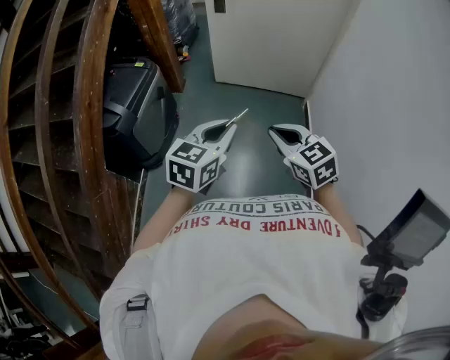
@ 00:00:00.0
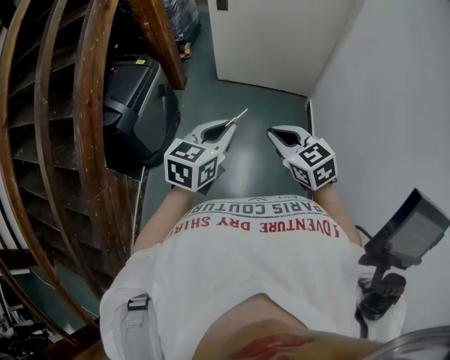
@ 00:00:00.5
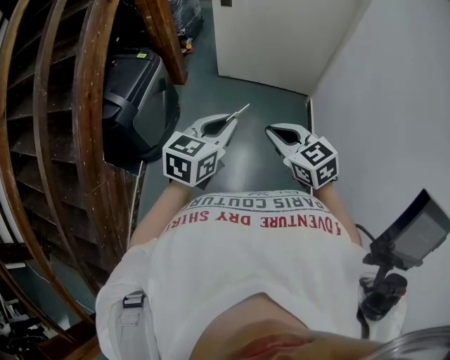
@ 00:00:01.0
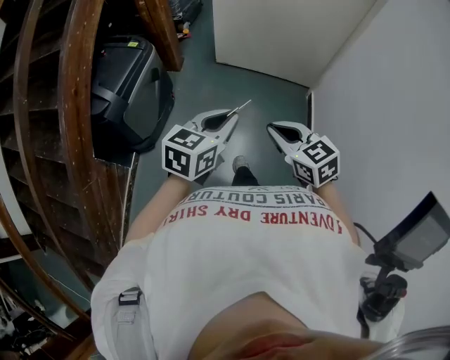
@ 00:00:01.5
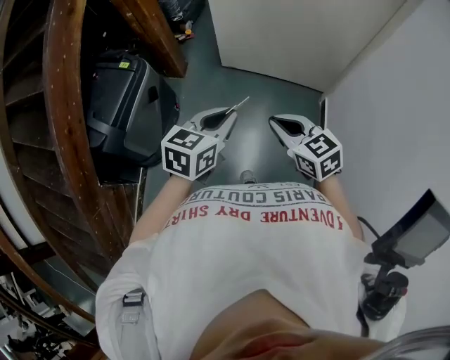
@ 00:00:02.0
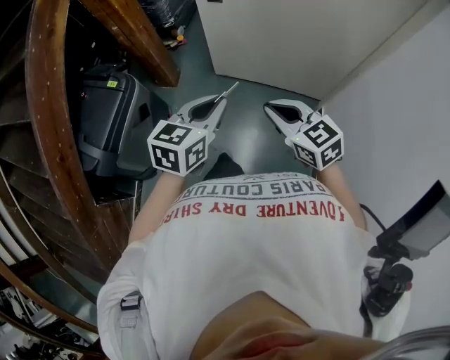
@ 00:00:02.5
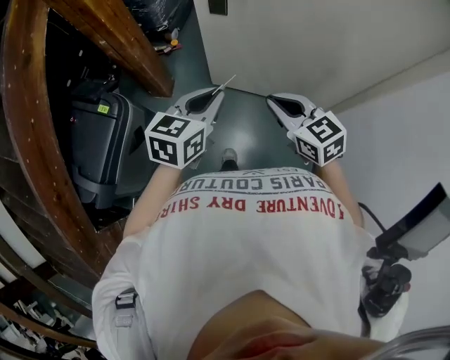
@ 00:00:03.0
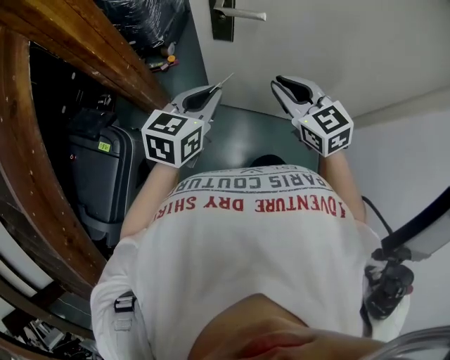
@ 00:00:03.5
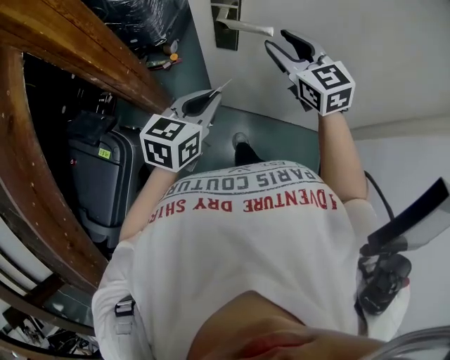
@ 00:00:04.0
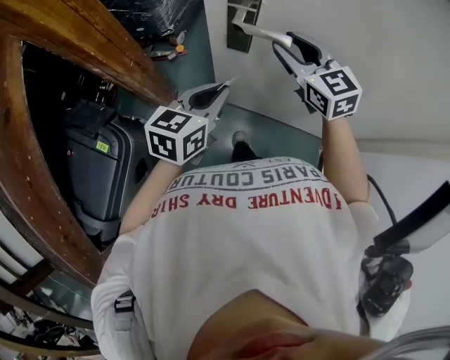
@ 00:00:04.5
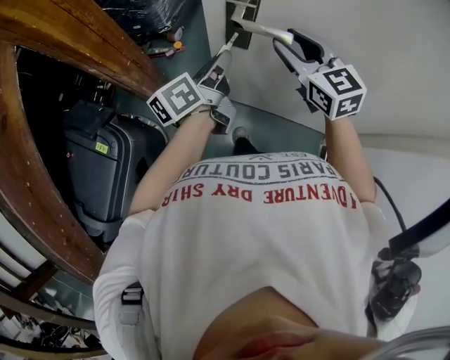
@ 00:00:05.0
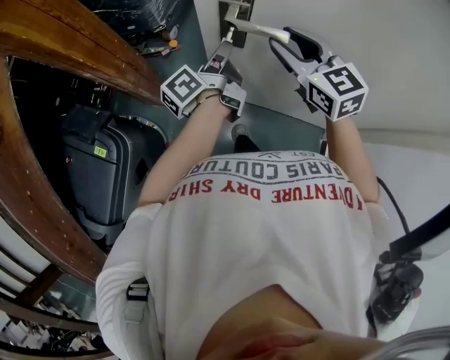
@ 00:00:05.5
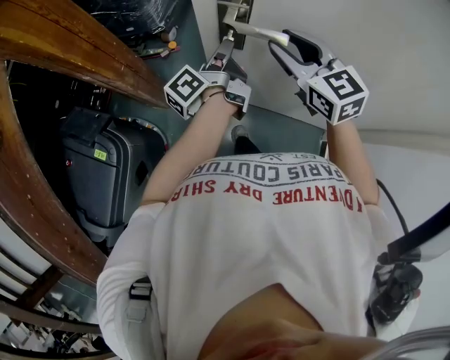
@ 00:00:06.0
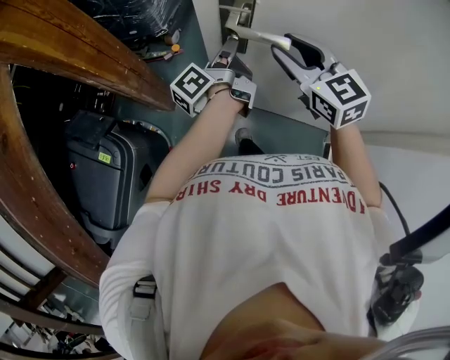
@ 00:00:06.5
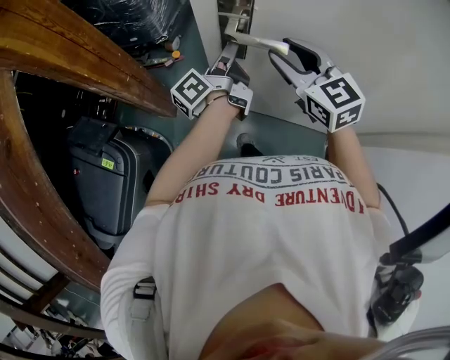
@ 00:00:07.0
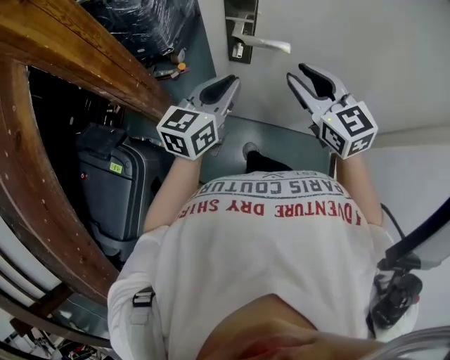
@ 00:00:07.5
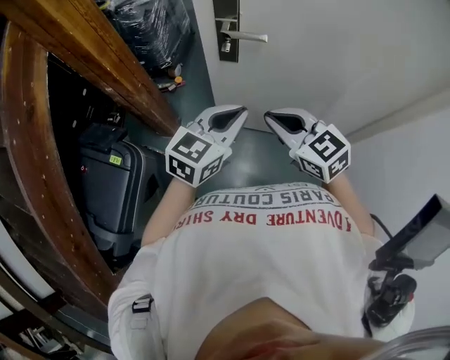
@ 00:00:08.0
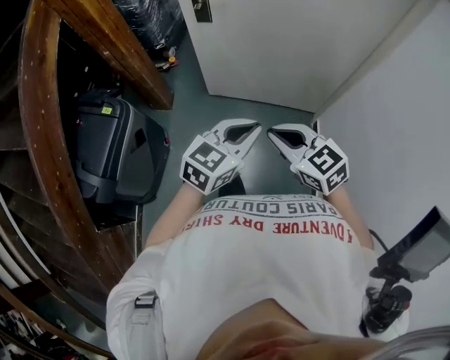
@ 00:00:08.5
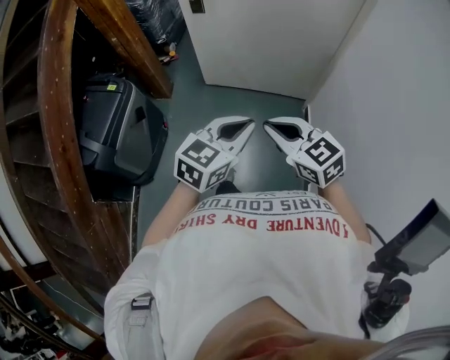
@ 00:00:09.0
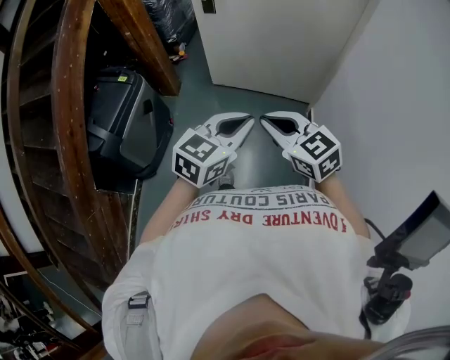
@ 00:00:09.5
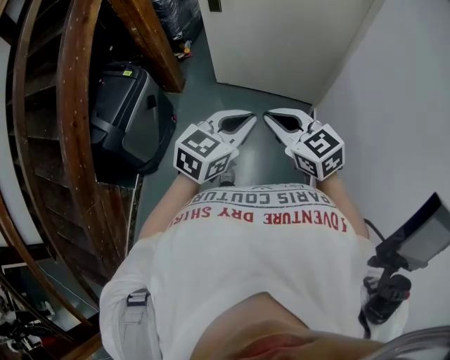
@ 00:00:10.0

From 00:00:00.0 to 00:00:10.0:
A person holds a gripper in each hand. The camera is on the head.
From 00:00:00.0 to 00:00:02.0: Both grippers move forward, approximately 30 cm.
From 00:00:02.0 to 00:00:04.0: The two grippers travel together, forward, approximately 60 cm. The right gripper changes its angle by about 20 degrees, and opens.
From 00:00:04.0 to 00:00:06.0: The left gripper heads forward, covering approximately 15 cm, and rolls counterclockwise, seen from behind, by about 70 degrees.
From 00:00:06.0 to 00:00:08.0: Both grippers travel together backward, some 25 cm. The right gripper closes up. Meanwhile the left gripper rolls clockwise, seen from behind, by roughly 80 degrees.
From 00:00:08.0 to 00:00:10.0: The two grippers travel together, backward, about 60 cm.

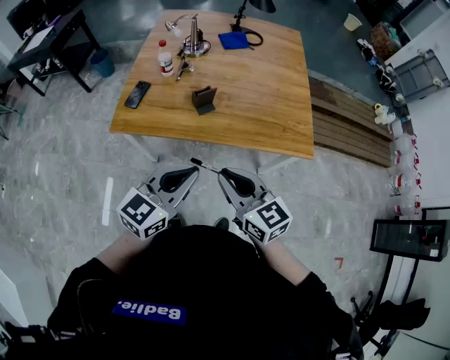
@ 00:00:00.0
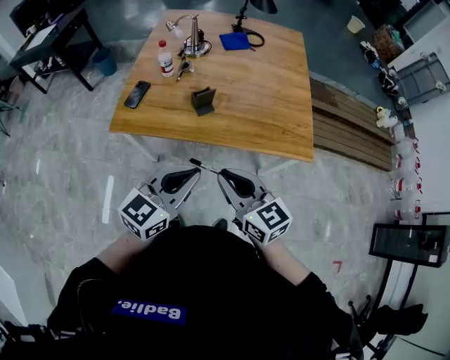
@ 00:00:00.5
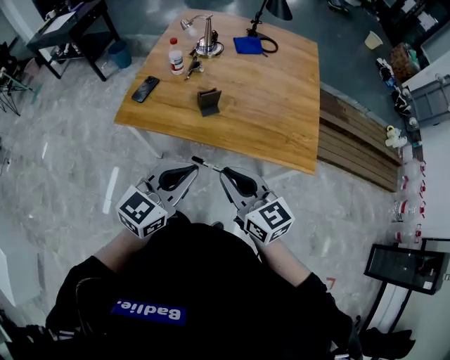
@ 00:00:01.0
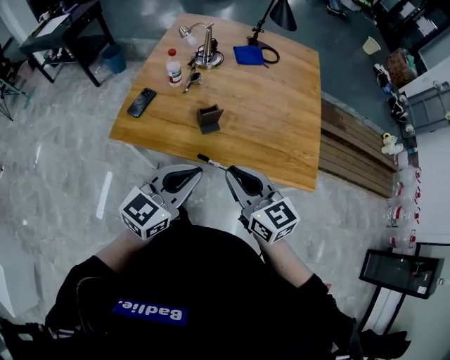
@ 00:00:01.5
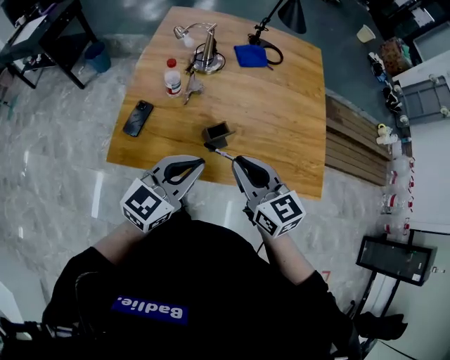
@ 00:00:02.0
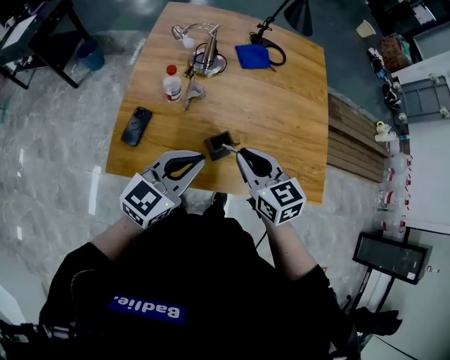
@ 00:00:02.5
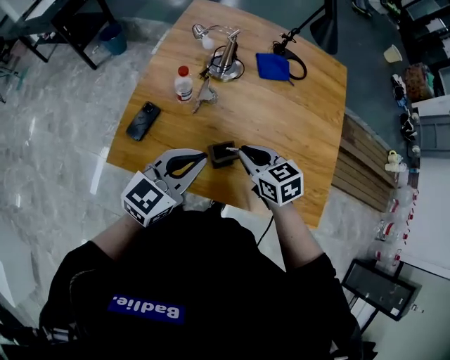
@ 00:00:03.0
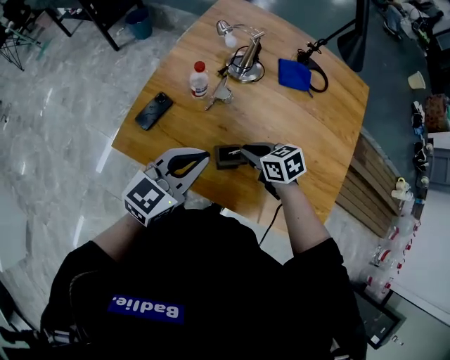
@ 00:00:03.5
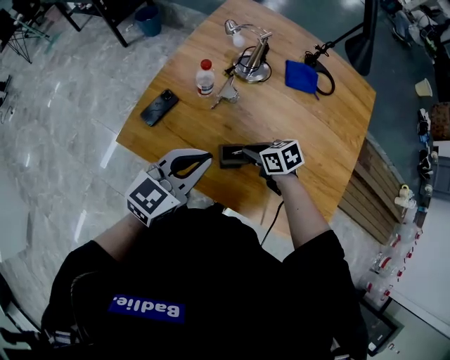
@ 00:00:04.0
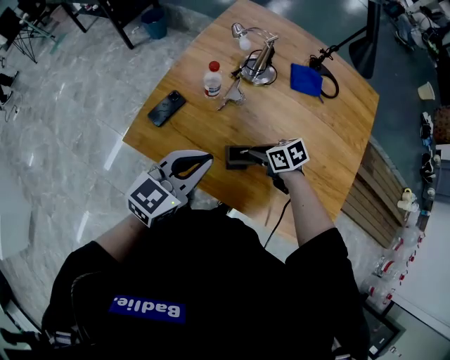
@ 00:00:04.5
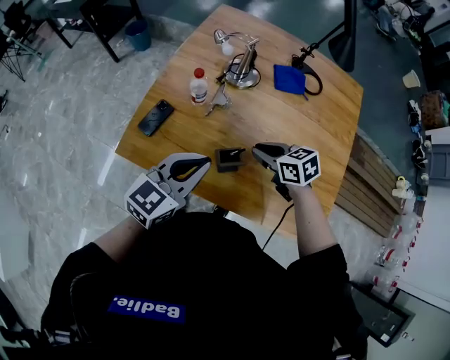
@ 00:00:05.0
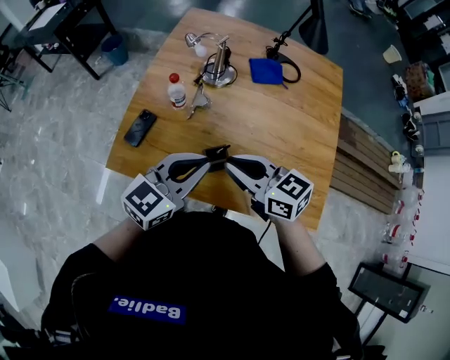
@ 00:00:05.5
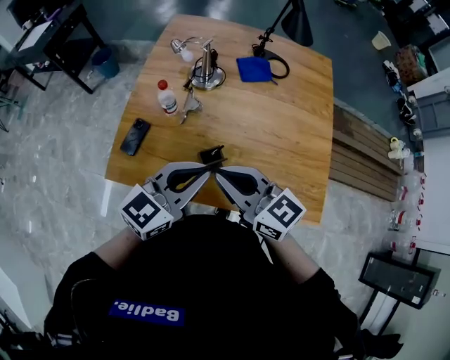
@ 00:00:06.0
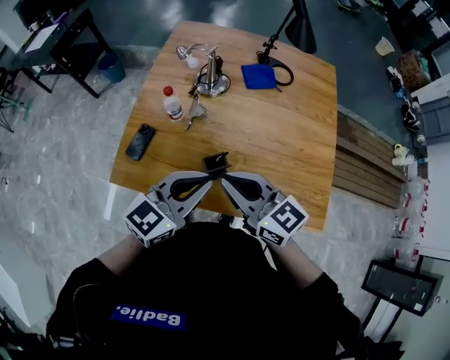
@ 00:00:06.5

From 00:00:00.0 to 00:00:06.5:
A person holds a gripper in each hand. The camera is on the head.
From 00:00:00.0 to 00:00:02.0: Both grippers move forward, approximately 20 cm.
From 00:00:02.0 to 00:00:04.5: The right gripper moves downward, roughly 20 cm, and points its fingers about 30 degrees further downward. The left gripper ends up roughly 10 cm from where it was.
From 00:00:04.5 to 00:00:06.5: The left gripper shifts by some 10 cm, while the right gripper travels upward by roughly 25 cm, and tilts its fingers roughly 40 degrees upward.

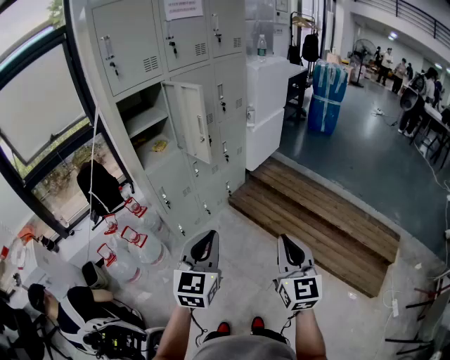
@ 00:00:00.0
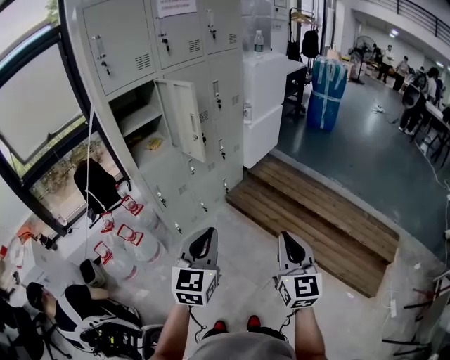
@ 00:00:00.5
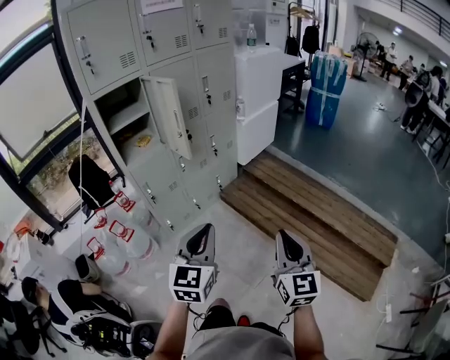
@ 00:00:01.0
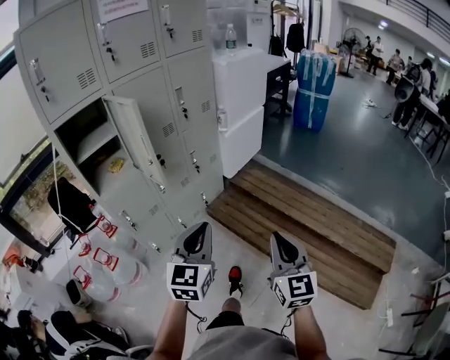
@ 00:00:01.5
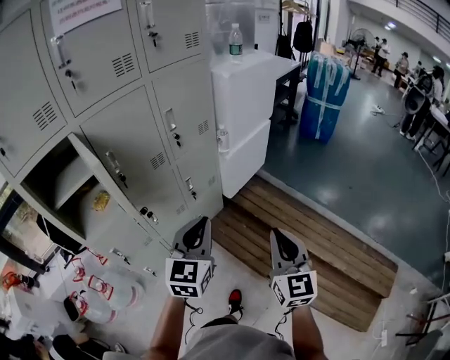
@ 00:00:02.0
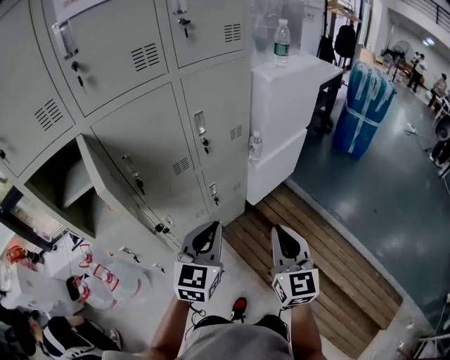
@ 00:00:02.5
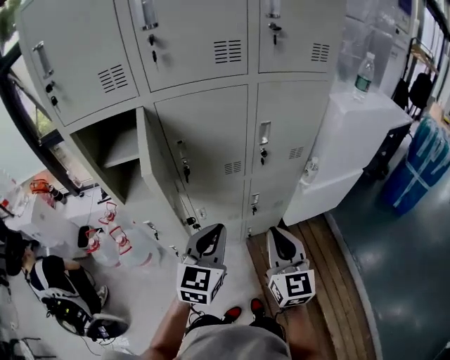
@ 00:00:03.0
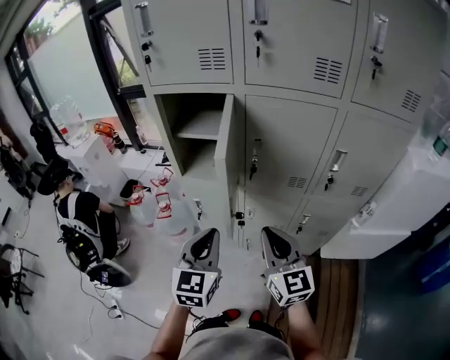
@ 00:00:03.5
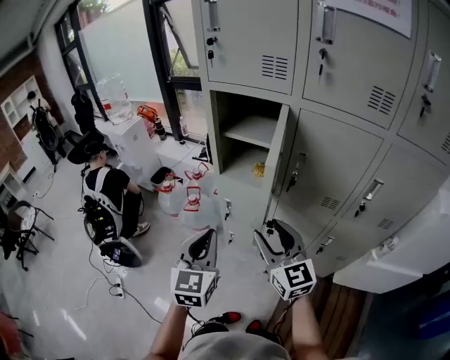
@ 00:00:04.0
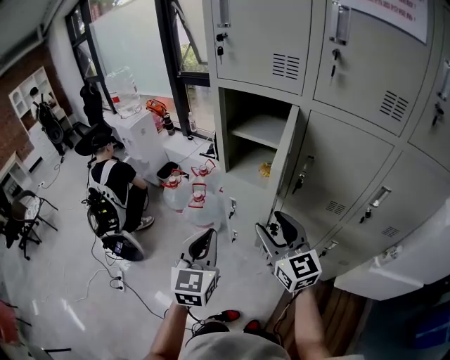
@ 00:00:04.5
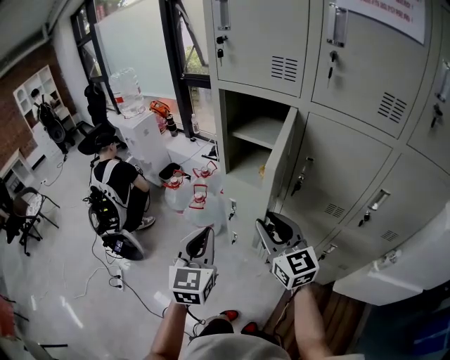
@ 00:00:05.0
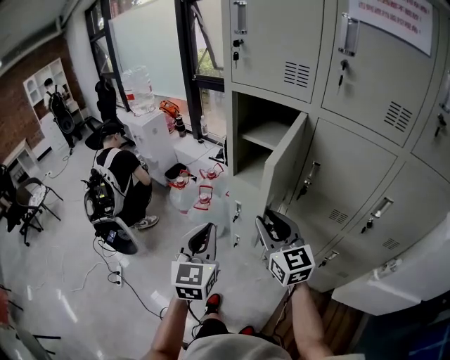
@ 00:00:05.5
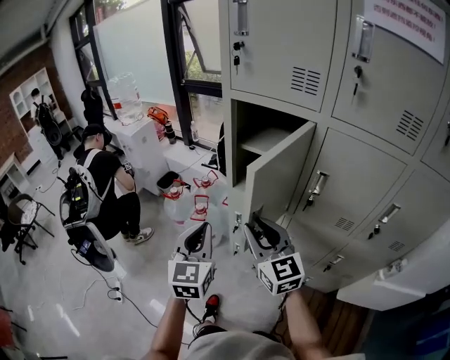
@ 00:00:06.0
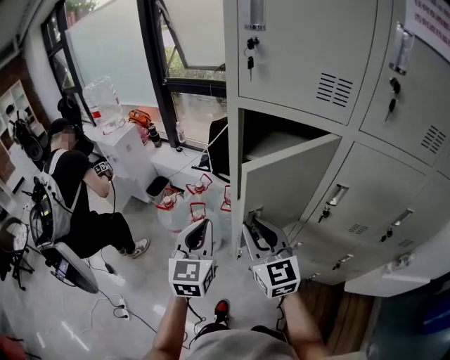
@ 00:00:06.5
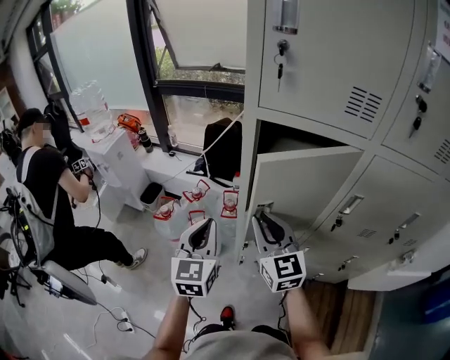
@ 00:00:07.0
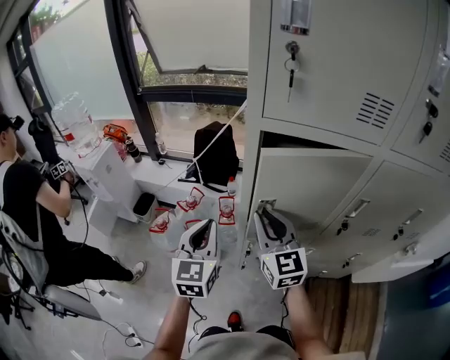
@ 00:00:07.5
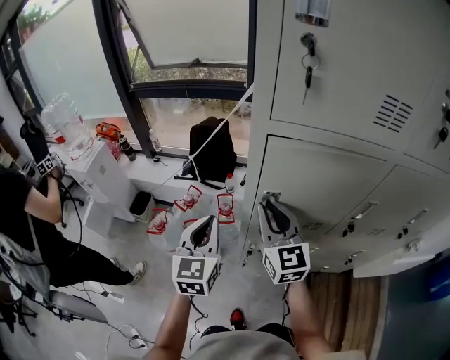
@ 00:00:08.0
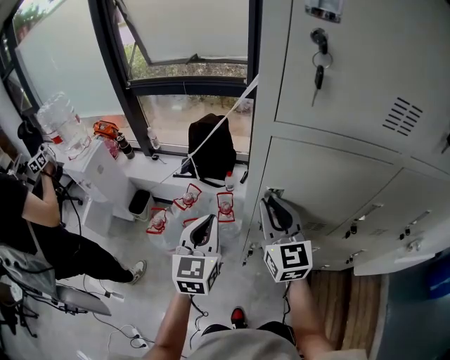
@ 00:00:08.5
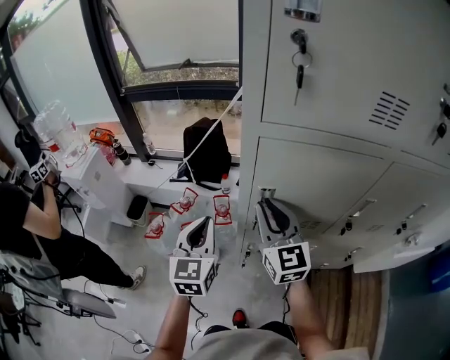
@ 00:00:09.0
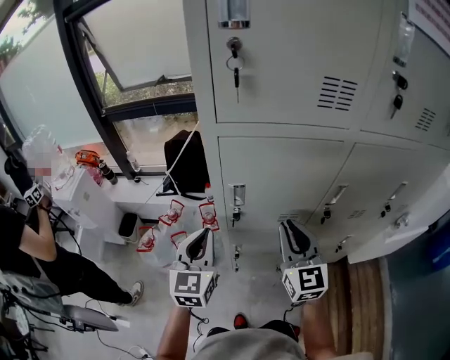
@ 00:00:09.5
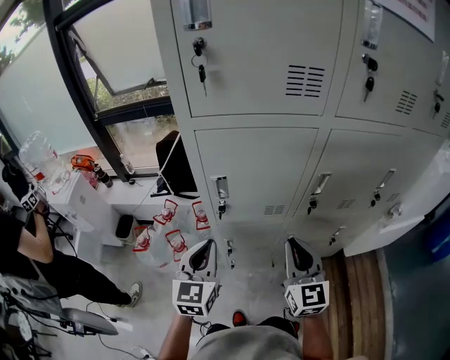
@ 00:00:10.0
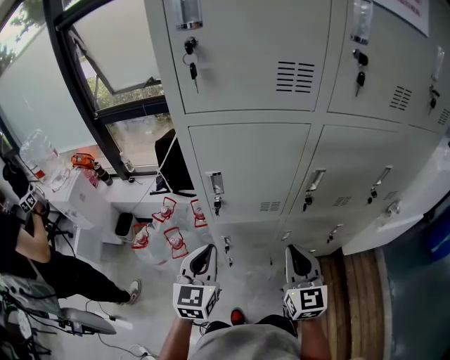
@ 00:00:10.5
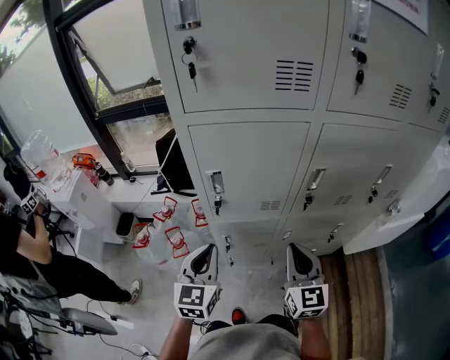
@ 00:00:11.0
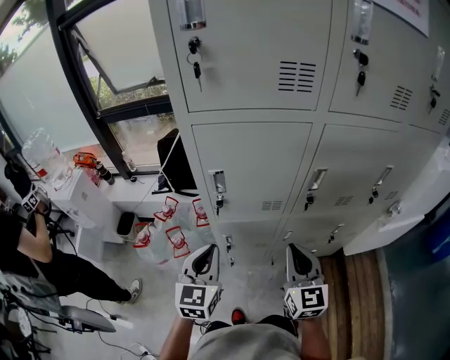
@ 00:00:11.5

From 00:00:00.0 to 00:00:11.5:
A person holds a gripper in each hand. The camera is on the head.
From 00:00:00.0 to 00:00:02.0: Both grippers are carried forward, some 50 cm.
From 00:00:02.0 to 00:00:04.0: The right gripper moves roughly 35 cm, turns by approximately 90 degrees, and opens. The left gripper changes place by roughly 25 cm, and changes its angle by approximately 70 degrees.
From 00:00:04.0 to 00:00:06.0: The right gripper travels forward and to the left by some 10 cm; the left gripper shifts about 10 cm forward.
From 00:00:06.0 to 00:00:07.5: The grippers both shift forward by about 20 cm. The right gripper changes its angle by some 20 degrees.
From 00:00:07.5 to 00:00:09.5: The left gripper travels to the right by about 5 cm, while the right gripper heads to the right, covering some 10 cm.
From 00:00:09.5 to 00:00:11.5: The right gripper is displaced backward, to the right and downward by roughly 15 cm. The left gripper is displaced backward and to the right by roughly 10 cm.
